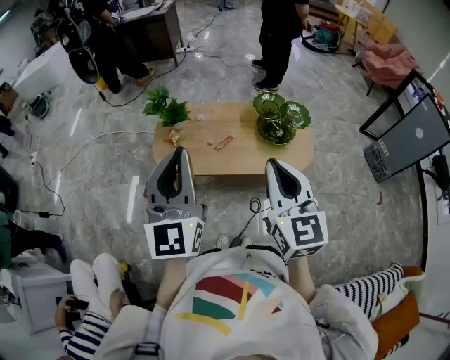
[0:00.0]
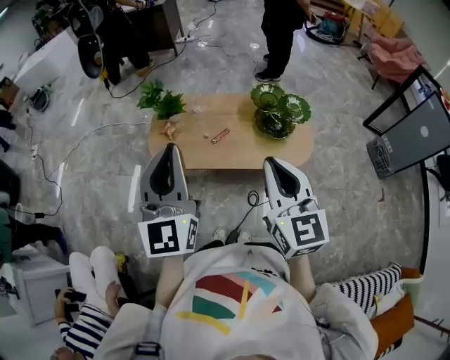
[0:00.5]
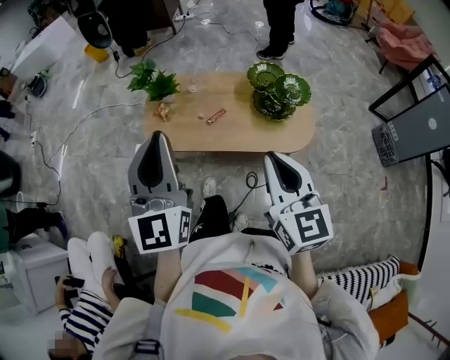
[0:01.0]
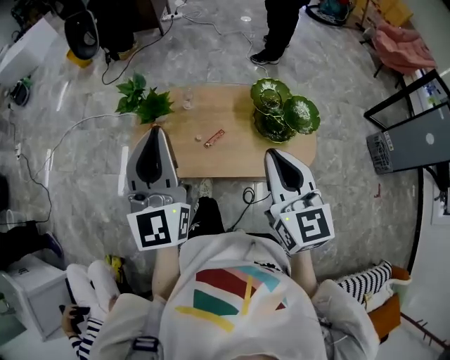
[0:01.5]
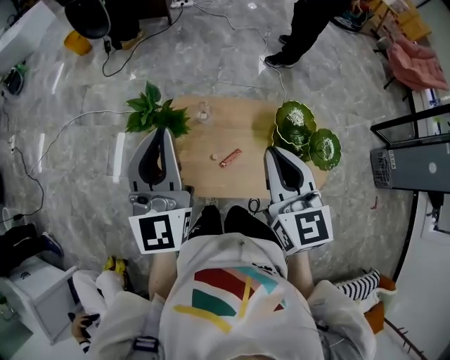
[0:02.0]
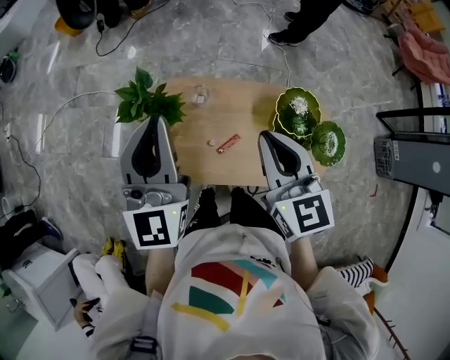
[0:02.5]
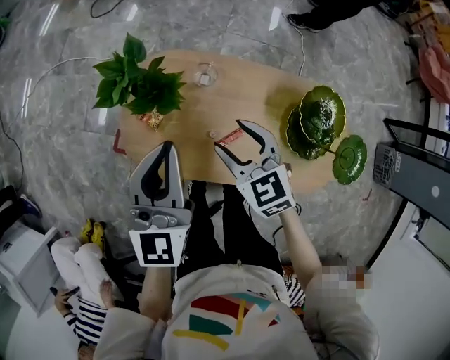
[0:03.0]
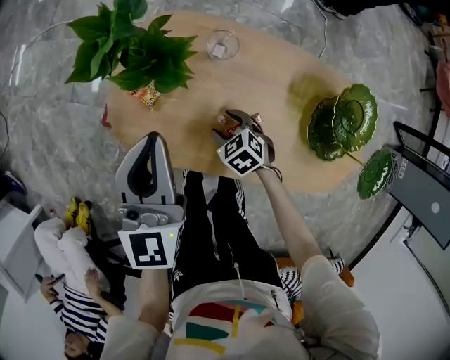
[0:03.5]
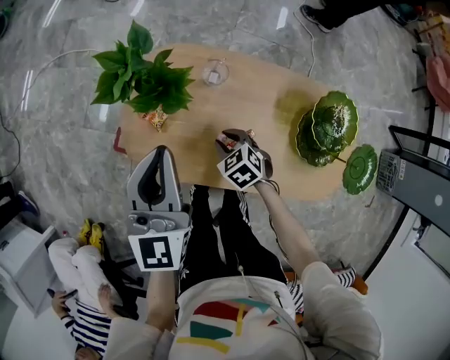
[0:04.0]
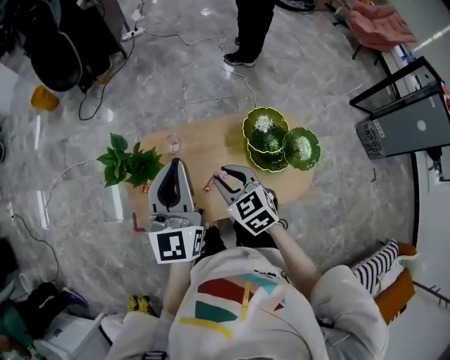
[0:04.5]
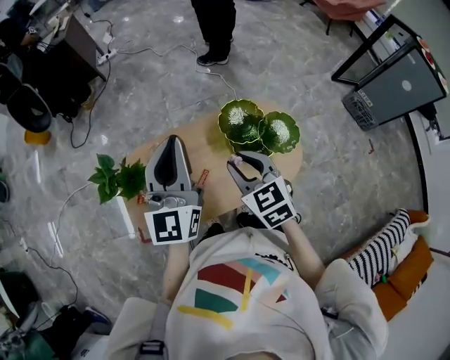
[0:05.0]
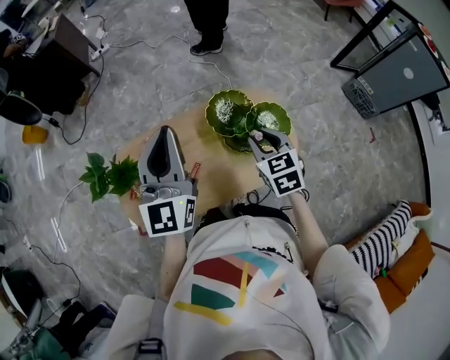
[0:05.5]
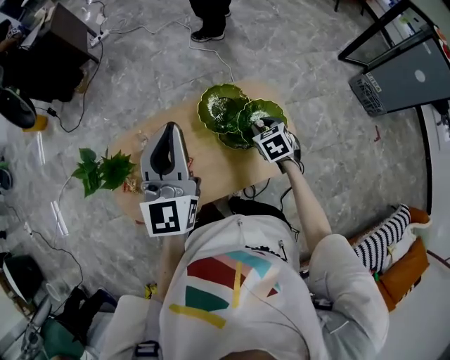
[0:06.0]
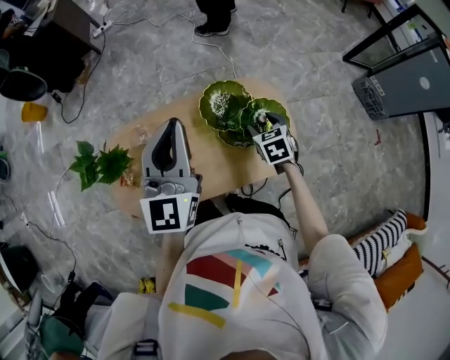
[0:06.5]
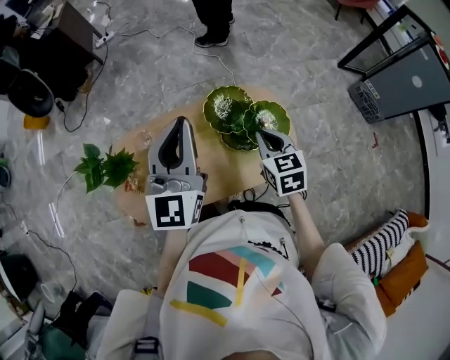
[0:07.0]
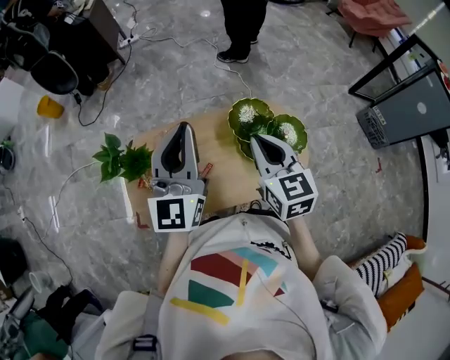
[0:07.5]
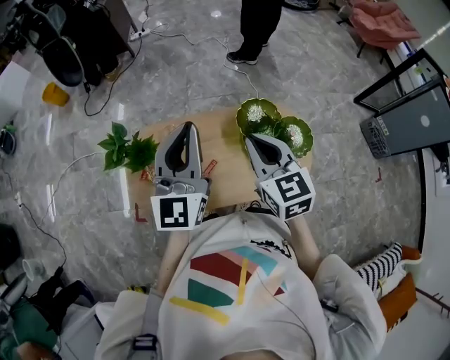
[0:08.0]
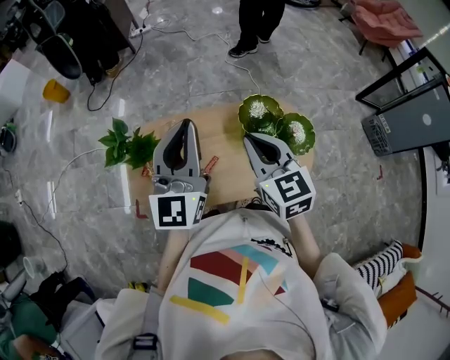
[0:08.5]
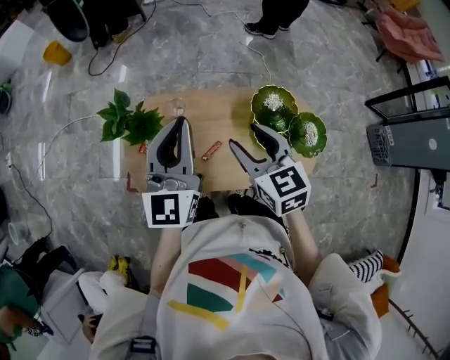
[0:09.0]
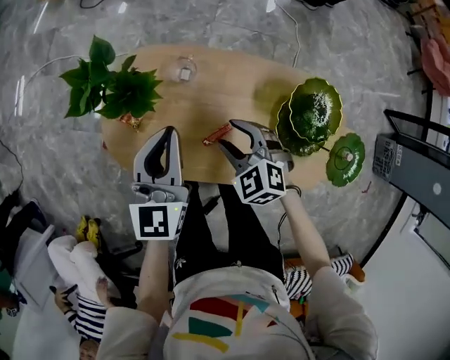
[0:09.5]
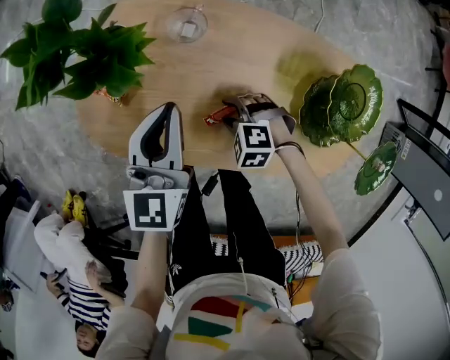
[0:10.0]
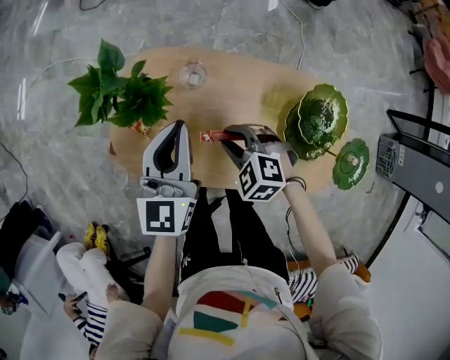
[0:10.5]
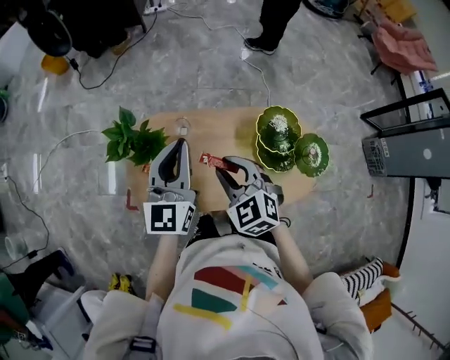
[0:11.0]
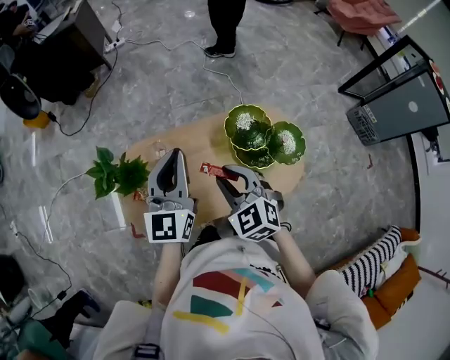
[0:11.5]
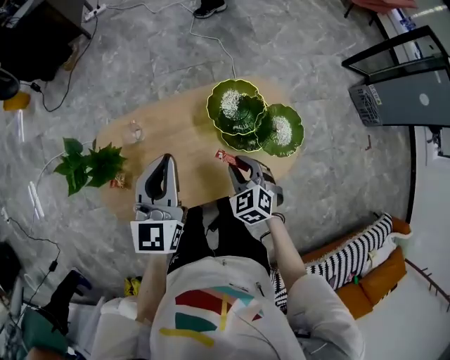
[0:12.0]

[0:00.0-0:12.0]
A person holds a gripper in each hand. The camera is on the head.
0:00.0 to 0:02.0: Both grippers move forward, approximately 35 cm.
0:02.0 to 0:04.0: The left gripper heads downward, covering roughly 25 cm; the right gripper goes approximately 50 cm downward, angles its fingers downward, by some 50 degrees, and opens its fingers.
0:04.0 to 0:06.0: The right gripper shifts by some 50 cm, and swivels approximately 50 degrees; the left gripper ends up some 40 cm from where it was, and turns by approximately 30 degrees.
0:06.0 to 0:08.0: The left gripper heads to the left and backward, covering some 10 cm. The right gripper heads upward and to the left, covering about 30 cm, angles its fingers upward, by about 40 degrees, and closes.
0:08.0 to 0:10.0: The two grippers go about 50 cm downward. The left gripper changes its angle by roughly 40 degrees. The right gripper tips its fingers downward by about 50 degrees, and opens its fingers.
0:10.0 to 0:12.0: The two grippers go some 25 cm upward. The left gripper rotates approximately 30 degrees; the right gripper changes its angle by about 70 degrees, and closes.

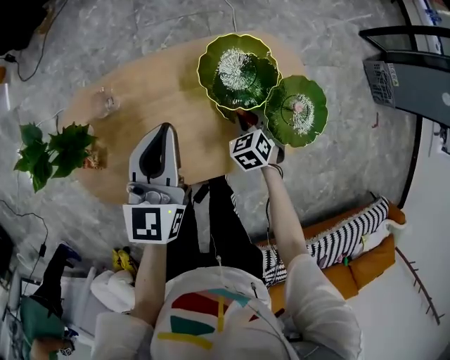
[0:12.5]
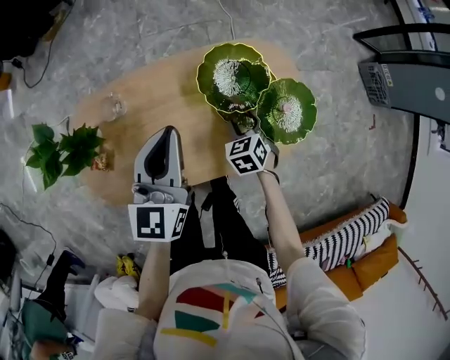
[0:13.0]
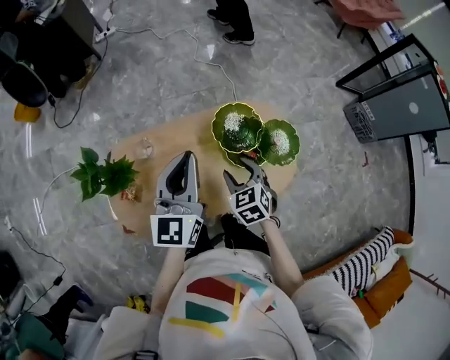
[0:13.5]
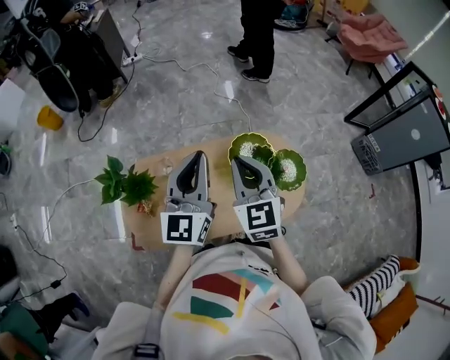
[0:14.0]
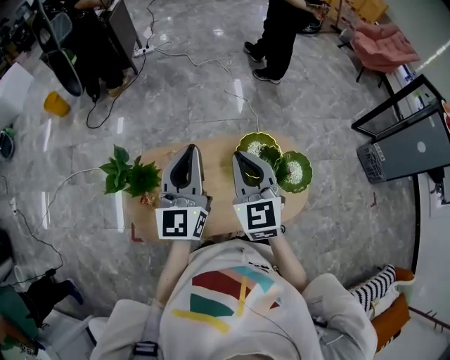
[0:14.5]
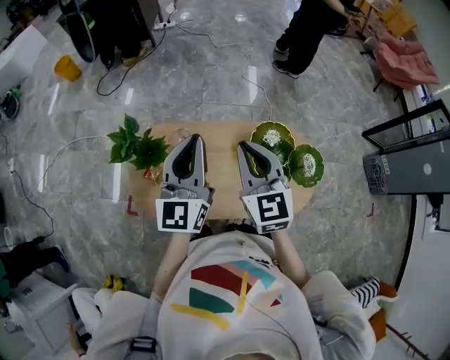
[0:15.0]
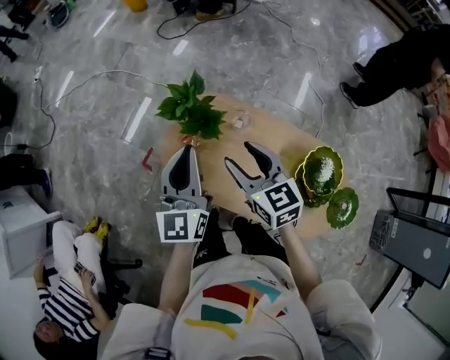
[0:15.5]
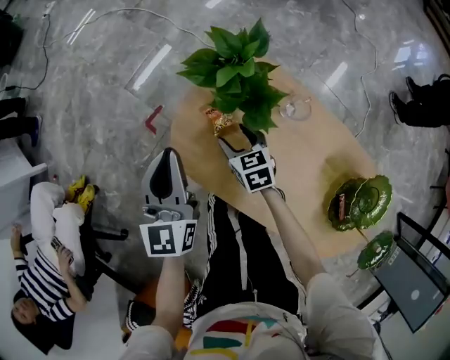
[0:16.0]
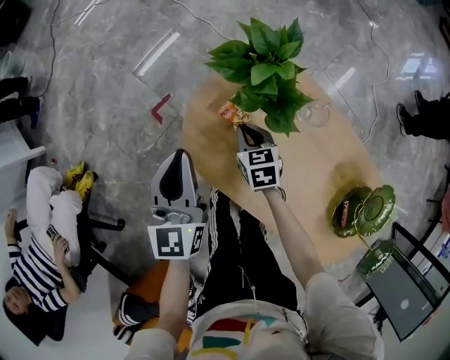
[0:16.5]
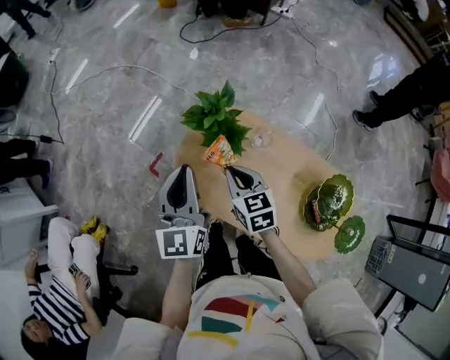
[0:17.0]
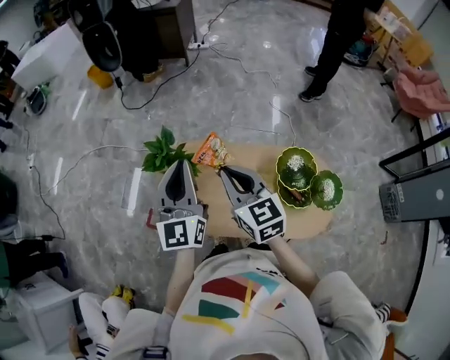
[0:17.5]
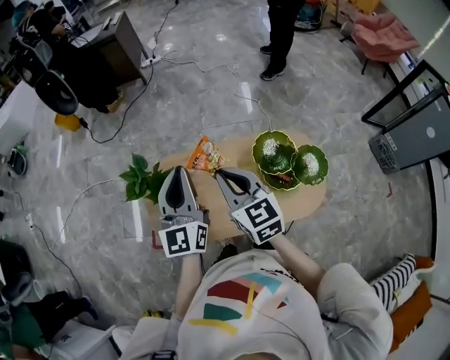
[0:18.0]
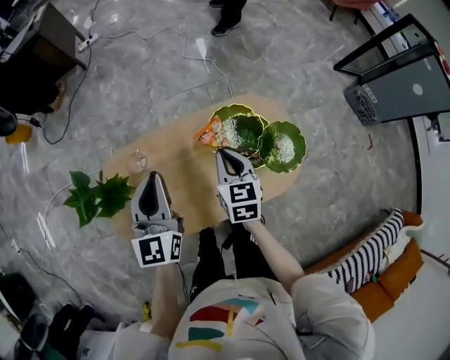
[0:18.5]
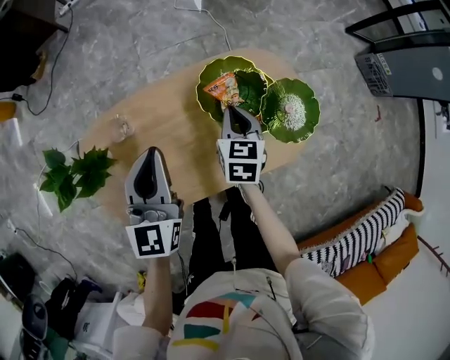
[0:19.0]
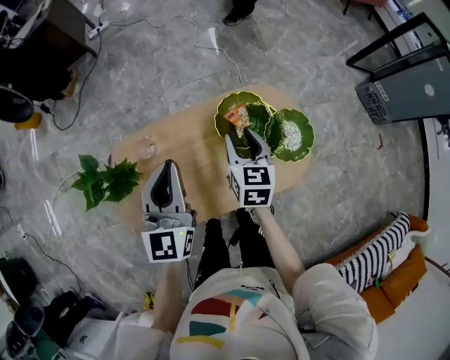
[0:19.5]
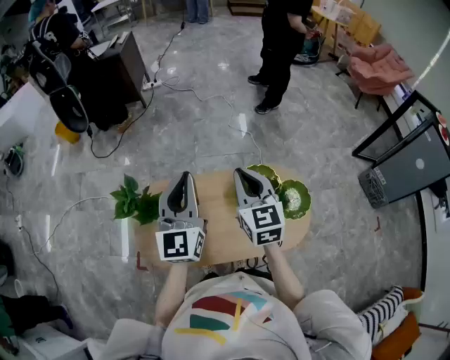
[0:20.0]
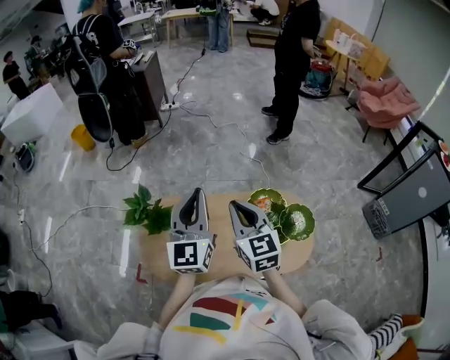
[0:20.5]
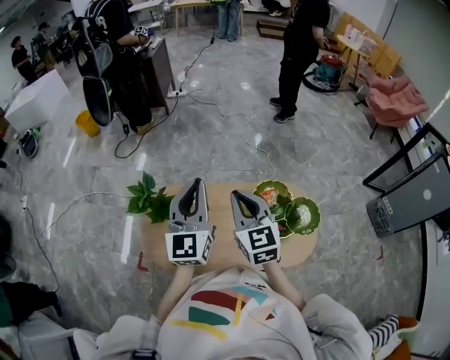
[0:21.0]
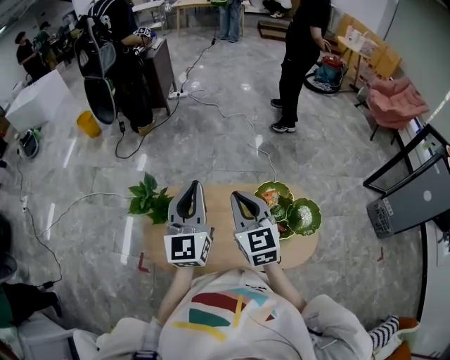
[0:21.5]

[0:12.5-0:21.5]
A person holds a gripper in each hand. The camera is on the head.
0:12.5 to 0:14.5: The right gripper moves upward, roughly 50 cm, points its fingers roughly 50 degrees further upward, and closes up; the left gripper heads upward, covering some 25 cm, and turns by roughly 20 degrees.
0:14.5 to 0:17.0: The left gripper shifts by approximately 35 cm, and rotates approximately 50 degrees. The right gripper rotates roughly 50 degrees, and opens and closes again.
0:17.0 to 0:19.5: The left gripper moves up and down over approximately 20 cm, changing direction 2 times, and turns by roughly 50 degrees. The right gripper moves up and down over some 30 cm, changing direction 2 times, turns by about 70 degrees, and opens up.
0:19.5 to 0:21.5: The left gripper is displaced upward and to the left by some 15 cm, and changes its angle by about 20 degrees. Meanwhile the right gripper moves upward and to the left, approximately 25 cm, rotates about 40 degrees, and closes its fingers.

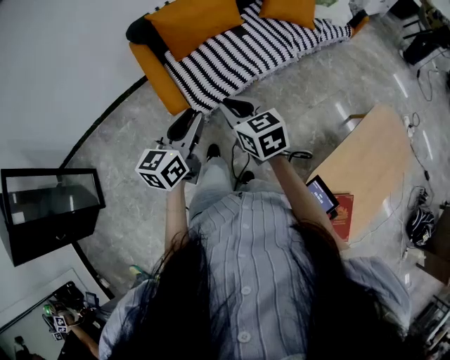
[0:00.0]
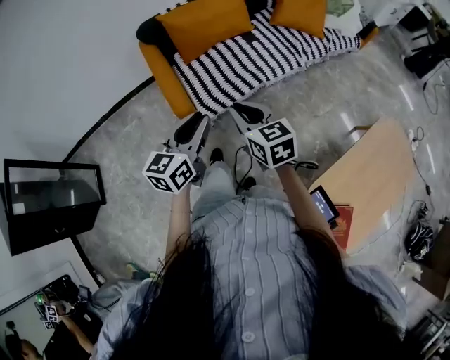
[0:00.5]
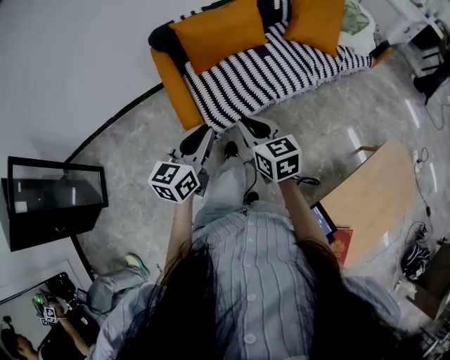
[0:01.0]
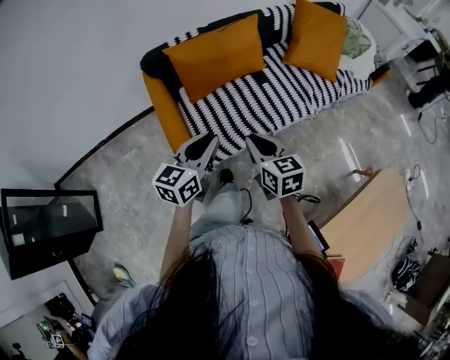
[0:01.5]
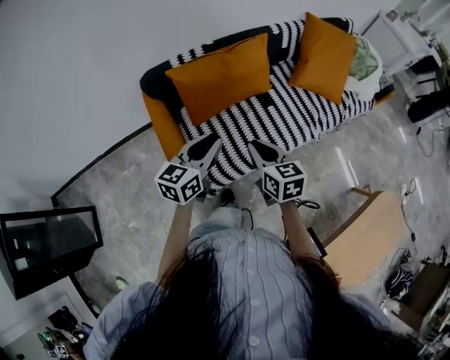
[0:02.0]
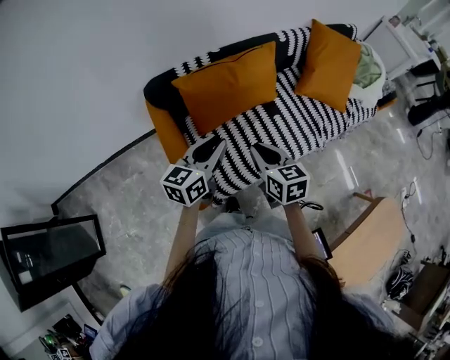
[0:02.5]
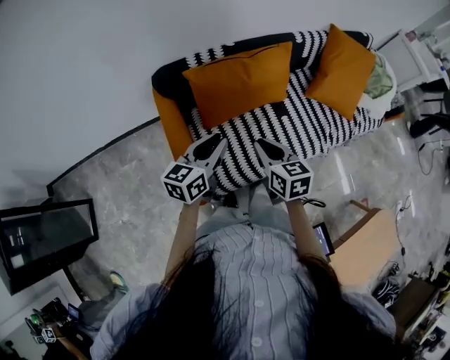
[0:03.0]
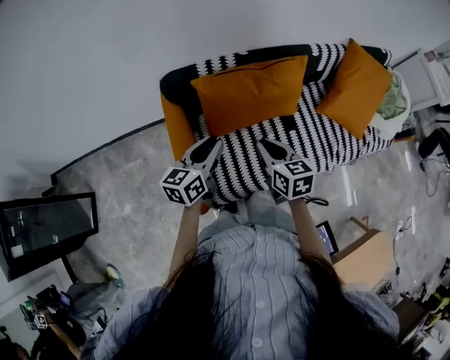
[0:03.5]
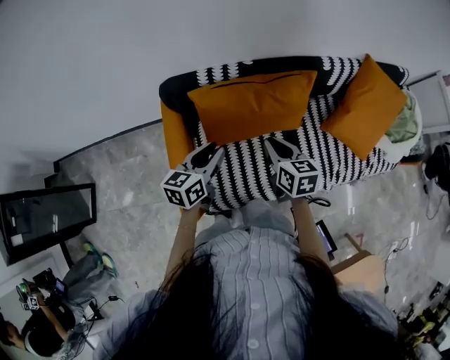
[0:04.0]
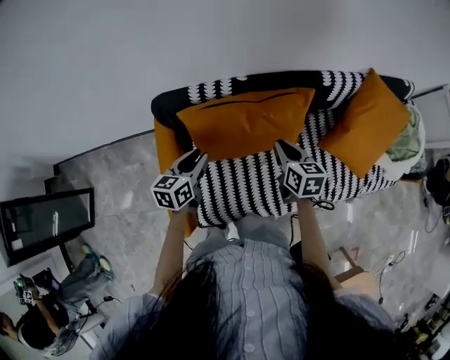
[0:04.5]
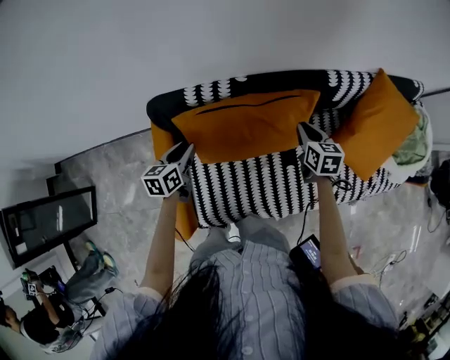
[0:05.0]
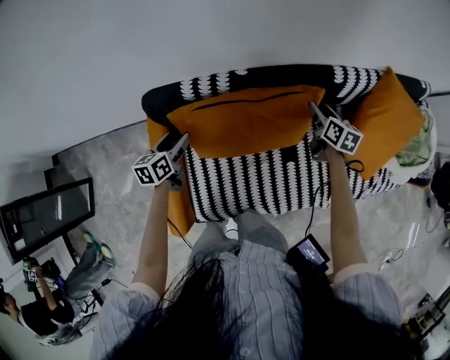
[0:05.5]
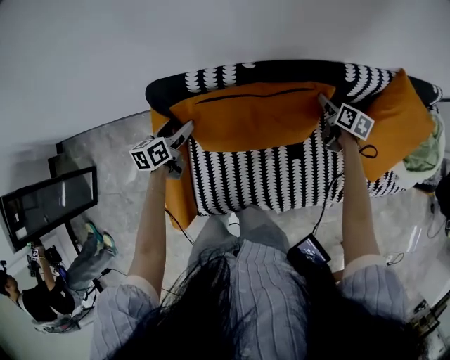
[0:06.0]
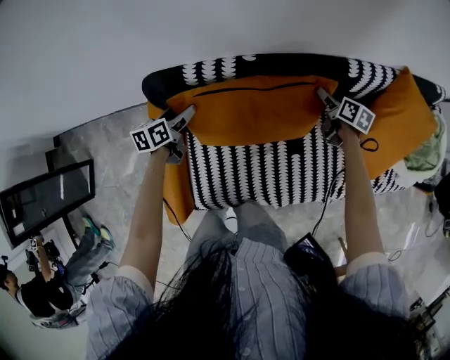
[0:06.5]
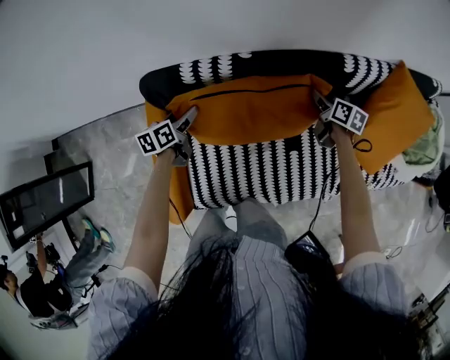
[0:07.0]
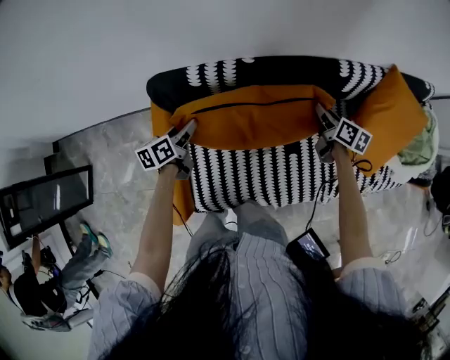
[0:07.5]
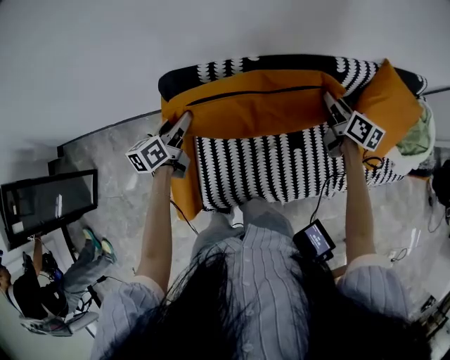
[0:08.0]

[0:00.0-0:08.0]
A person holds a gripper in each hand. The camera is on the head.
0:00.0 to 0:02.0: Both grippers move forward, approximately 35 cm.
0:02.0 to 0:04.0: The grippers both shift forward by about 25 cm. The left gripper changes its angle by some 20 degrees.
0:04.0 to 0:06.0: The right gripper is displaced forward, to the right and downward by about 40 cm, turns by roughly 20 degrees, and opens, while the left gripper heads forward, downward and to the left, covering about 25 cm, changes its angle by approximately 20 degrees, and opens up.
0:06.0 to 0:08.0: Both grippers move upward and backward, roughly 15 cm. The right gripper closes, while the left gripper closes up.
